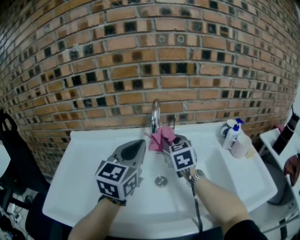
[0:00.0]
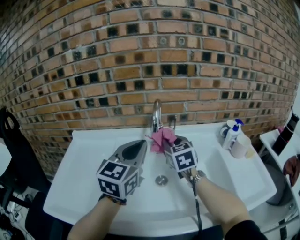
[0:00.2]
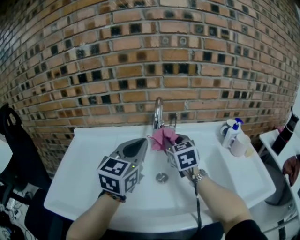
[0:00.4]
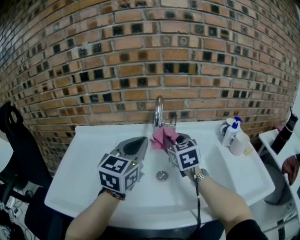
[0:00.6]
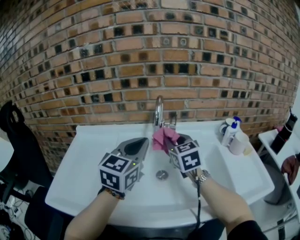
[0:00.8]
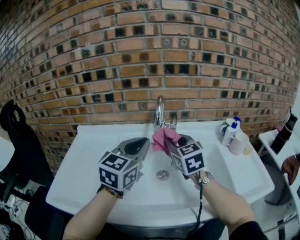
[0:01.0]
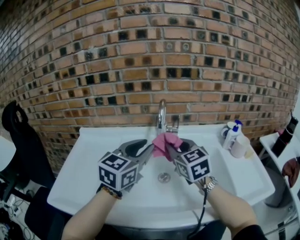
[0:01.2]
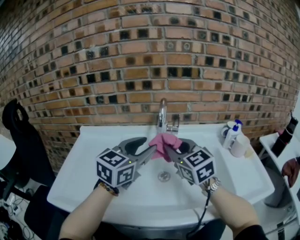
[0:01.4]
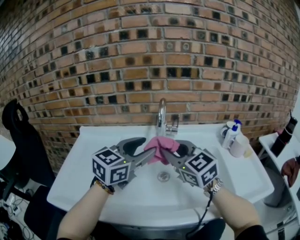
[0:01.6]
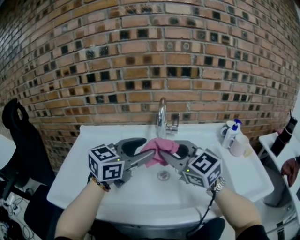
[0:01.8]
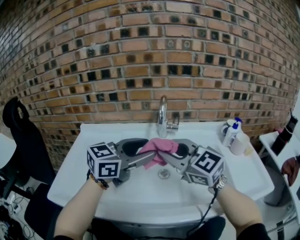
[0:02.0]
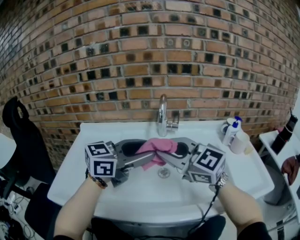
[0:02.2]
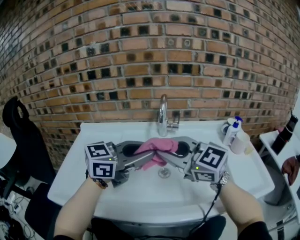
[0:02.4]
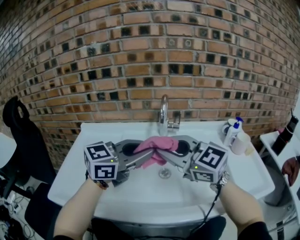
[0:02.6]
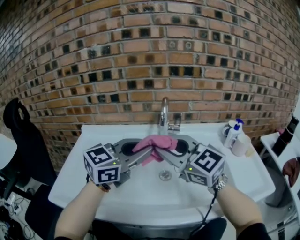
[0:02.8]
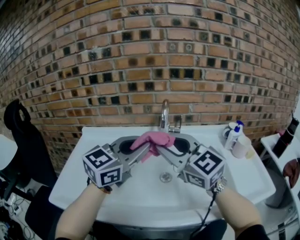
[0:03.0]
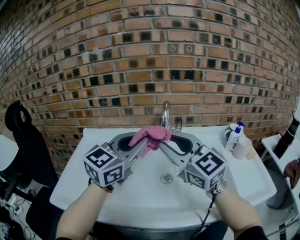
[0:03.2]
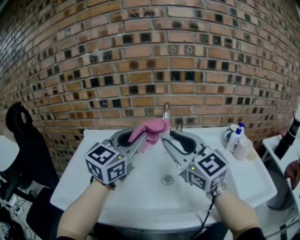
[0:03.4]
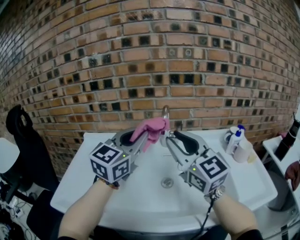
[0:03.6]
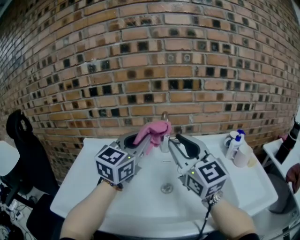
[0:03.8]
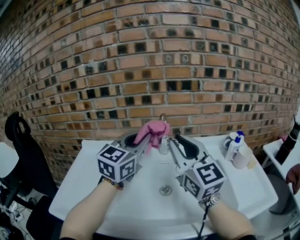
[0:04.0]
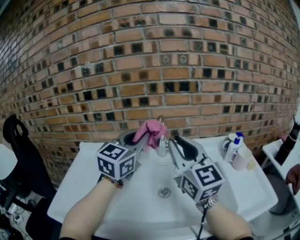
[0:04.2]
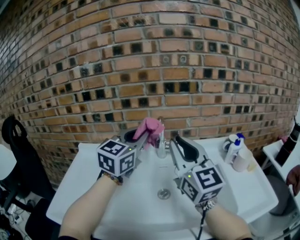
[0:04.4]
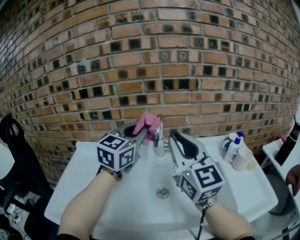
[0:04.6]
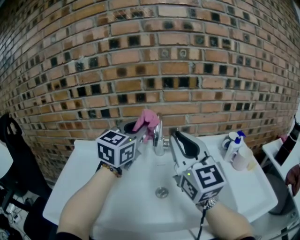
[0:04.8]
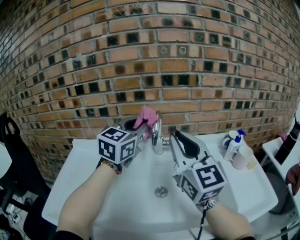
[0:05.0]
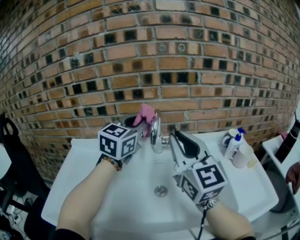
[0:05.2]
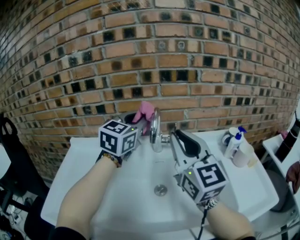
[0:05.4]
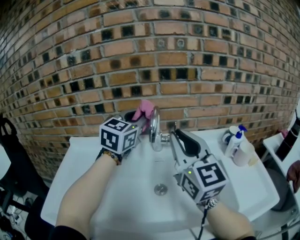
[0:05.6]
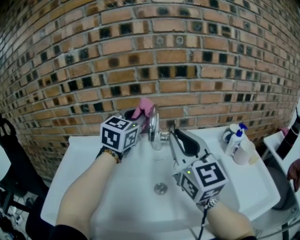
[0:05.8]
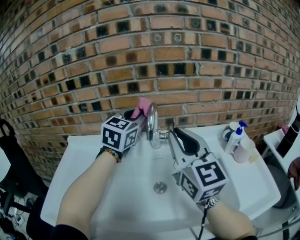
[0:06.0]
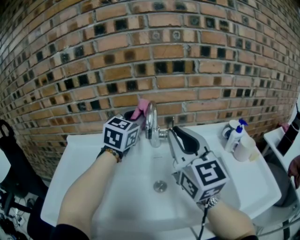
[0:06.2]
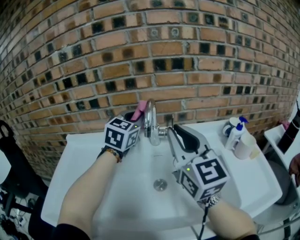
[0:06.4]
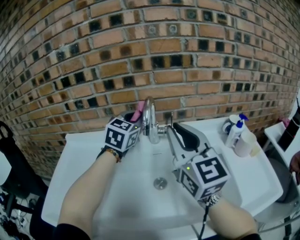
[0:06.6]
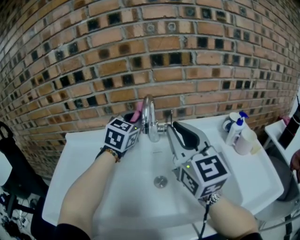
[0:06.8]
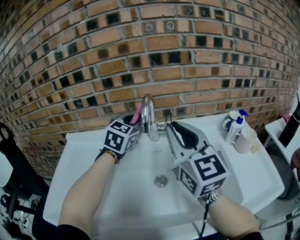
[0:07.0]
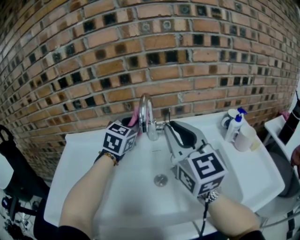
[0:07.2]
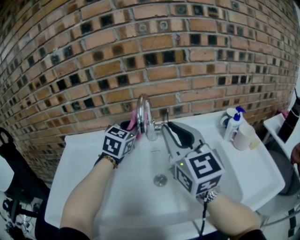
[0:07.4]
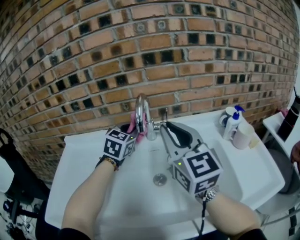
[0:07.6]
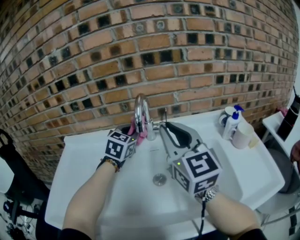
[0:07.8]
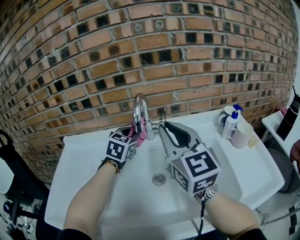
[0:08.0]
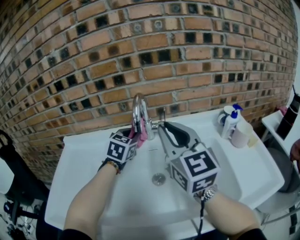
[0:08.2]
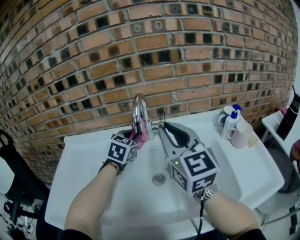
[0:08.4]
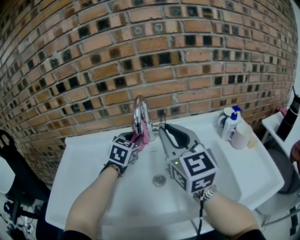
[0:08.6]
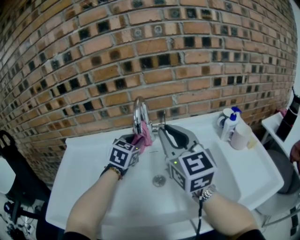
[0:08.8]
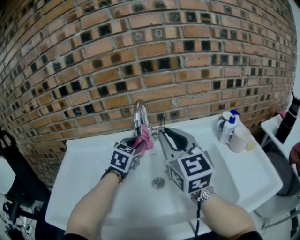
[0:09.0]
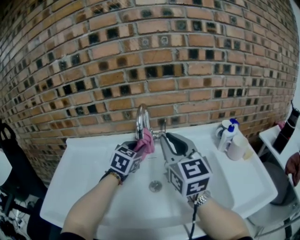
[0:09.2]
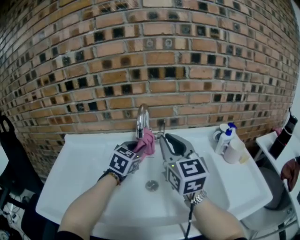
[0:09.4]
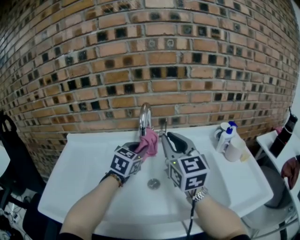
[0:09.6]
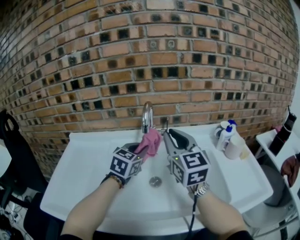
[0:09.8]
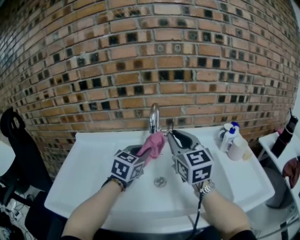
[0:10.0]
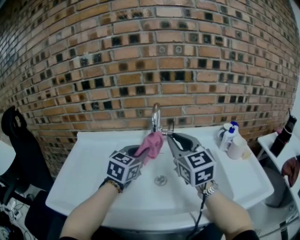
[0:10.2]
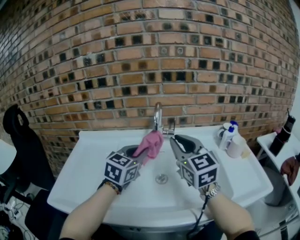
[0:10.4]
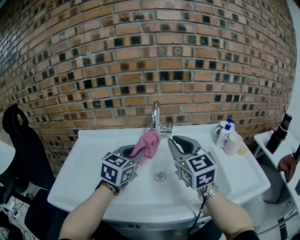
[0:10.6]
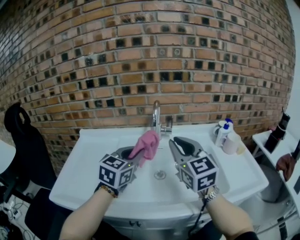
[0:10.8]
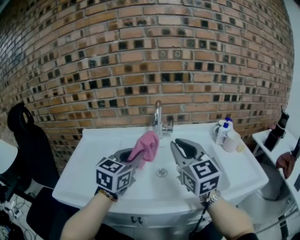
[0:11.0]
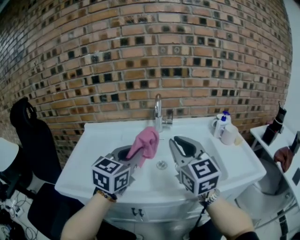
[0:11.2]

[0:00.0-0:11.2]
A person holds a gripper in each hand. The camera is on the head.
0:00.0 to 0:01.6: The right gripper moves backward and upward, roughly 15 cm, and changes its angle by some 30 degrees. The left gripper opens its fingers.
0:01.6 to 0:03.2: Both grippers move upward, approximately 5 cm. The left gripper closes up.
0:03.2 to 0:04.8: The left gripper travels forward by some 15 cm; the right gripper shifts some 10 cm to the right and forward, and turns by about 20 degrees.
0:04.8 to 0:06.4: The left gripper goes roughly 10 cm forward and downward.
0:06.4 to 0:08.0: The left gripper is displaced downward by about 10 cm.
0:08.0 to 0:09.6: The left gripper moves backward, approximately 5 cm.
0:09.6 to 0:11.2: The grippers both shift backward by about 20 cm.

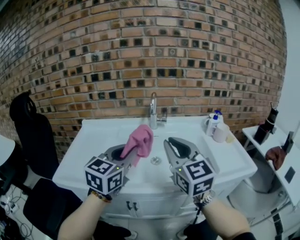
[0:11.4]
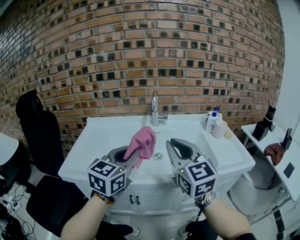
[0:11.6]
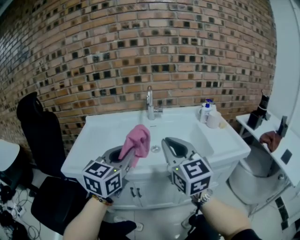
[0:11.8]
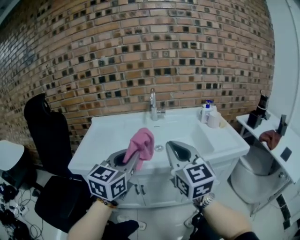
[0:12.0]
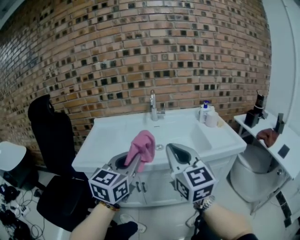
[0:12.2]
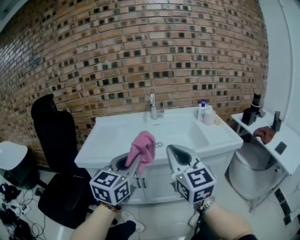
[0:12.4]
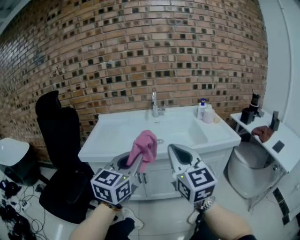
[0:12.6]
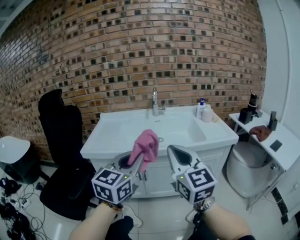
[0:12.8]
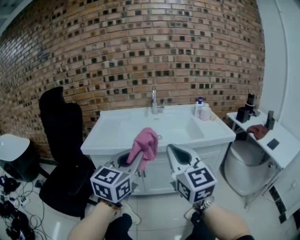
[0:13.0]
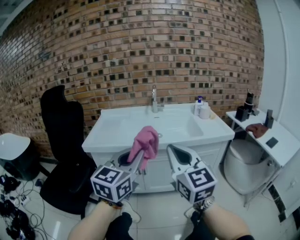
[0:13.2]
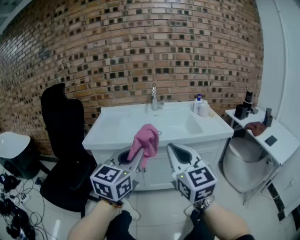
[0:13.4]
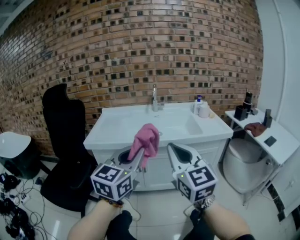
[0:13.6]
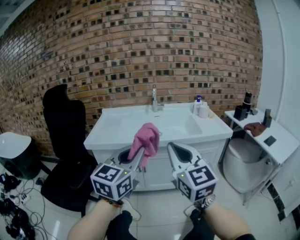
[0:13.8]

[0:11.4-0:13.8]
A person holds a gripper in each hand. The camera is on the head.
0:11.4 to 0:12.6: Both grippers travel together backward, some 25 cm.
0:12.6 to 0:13.8: The two grippers go roughly 10 cm backward.

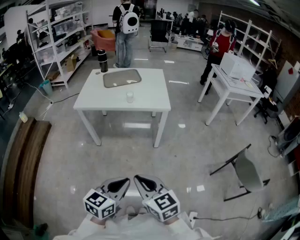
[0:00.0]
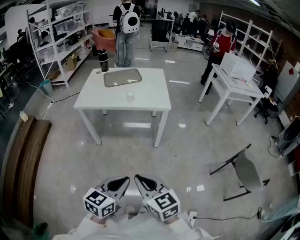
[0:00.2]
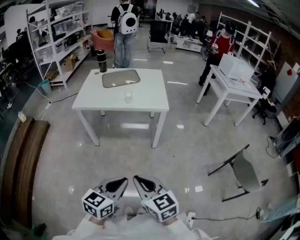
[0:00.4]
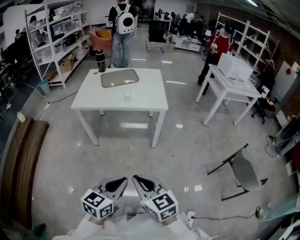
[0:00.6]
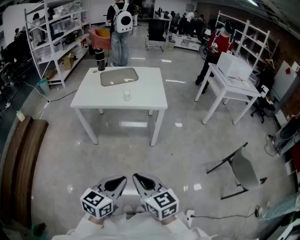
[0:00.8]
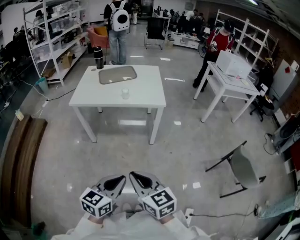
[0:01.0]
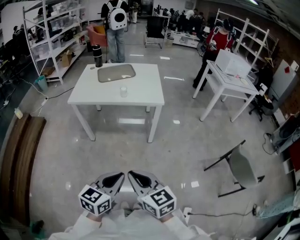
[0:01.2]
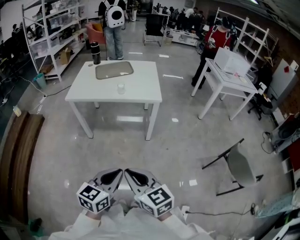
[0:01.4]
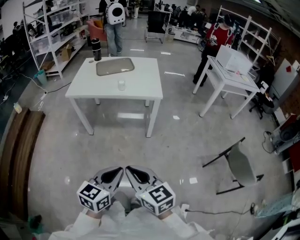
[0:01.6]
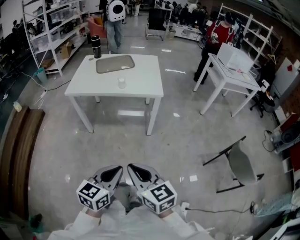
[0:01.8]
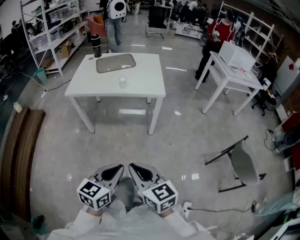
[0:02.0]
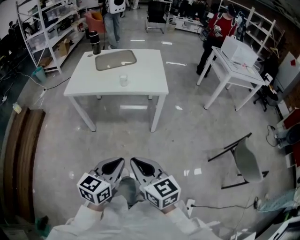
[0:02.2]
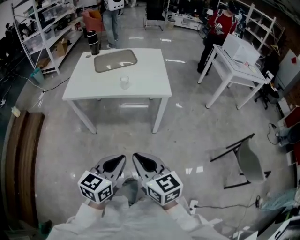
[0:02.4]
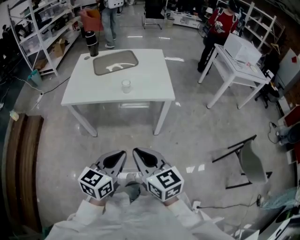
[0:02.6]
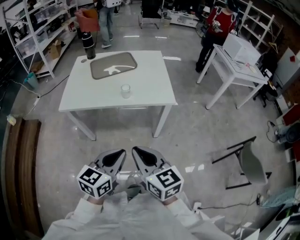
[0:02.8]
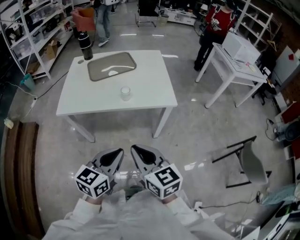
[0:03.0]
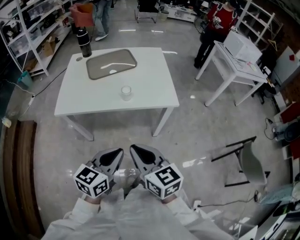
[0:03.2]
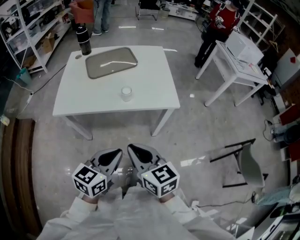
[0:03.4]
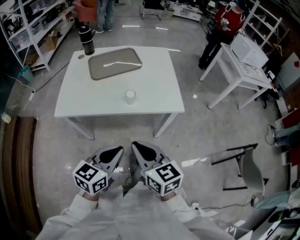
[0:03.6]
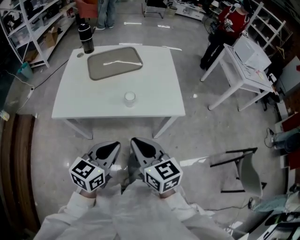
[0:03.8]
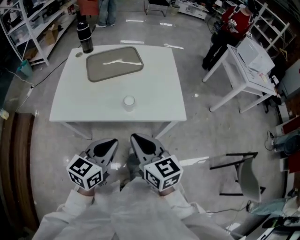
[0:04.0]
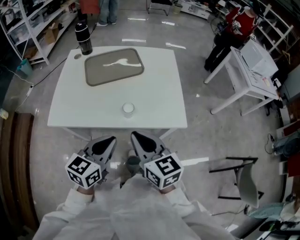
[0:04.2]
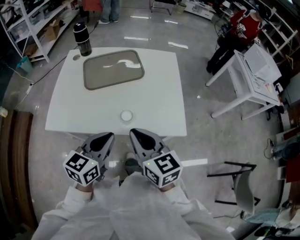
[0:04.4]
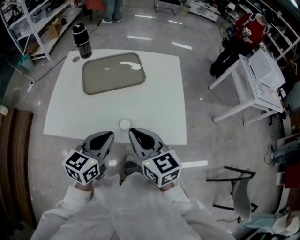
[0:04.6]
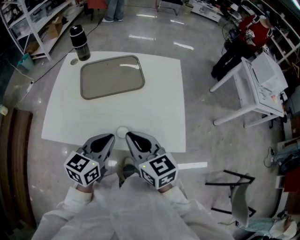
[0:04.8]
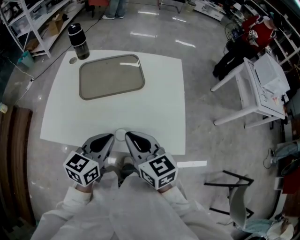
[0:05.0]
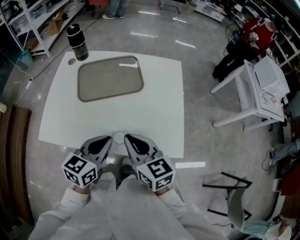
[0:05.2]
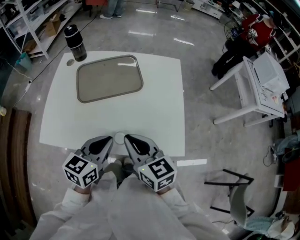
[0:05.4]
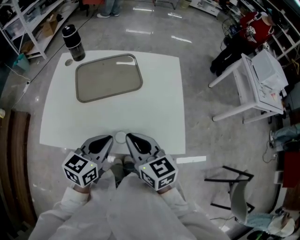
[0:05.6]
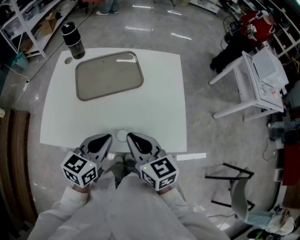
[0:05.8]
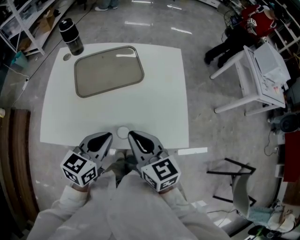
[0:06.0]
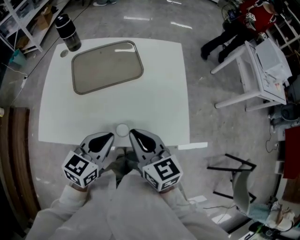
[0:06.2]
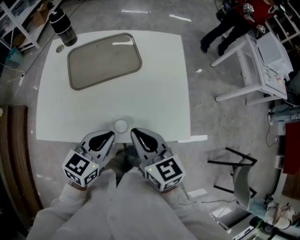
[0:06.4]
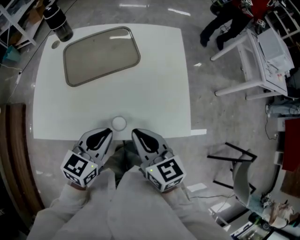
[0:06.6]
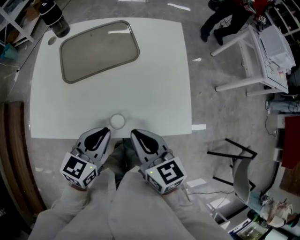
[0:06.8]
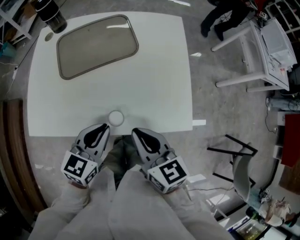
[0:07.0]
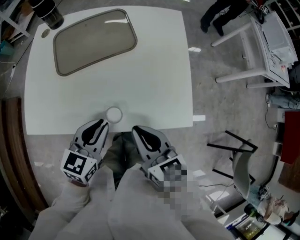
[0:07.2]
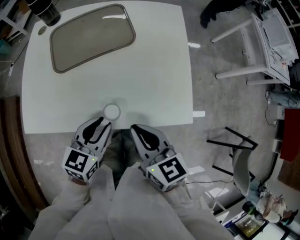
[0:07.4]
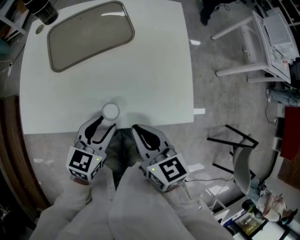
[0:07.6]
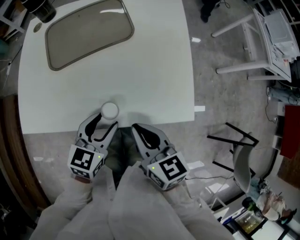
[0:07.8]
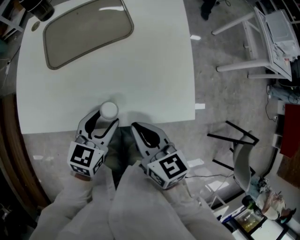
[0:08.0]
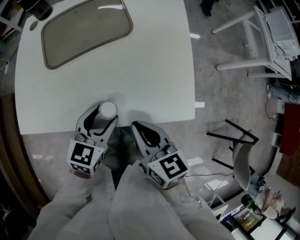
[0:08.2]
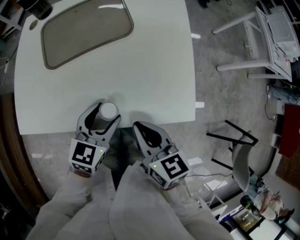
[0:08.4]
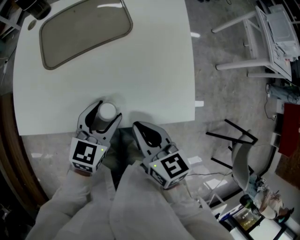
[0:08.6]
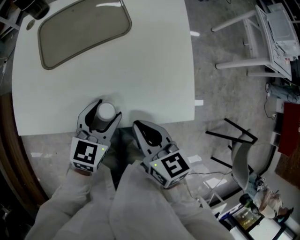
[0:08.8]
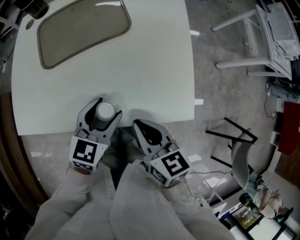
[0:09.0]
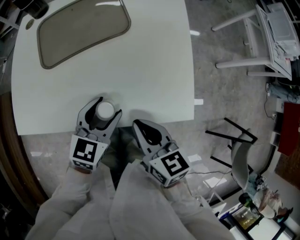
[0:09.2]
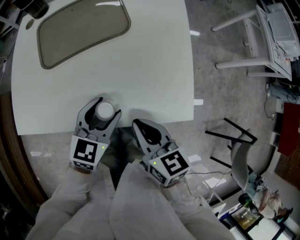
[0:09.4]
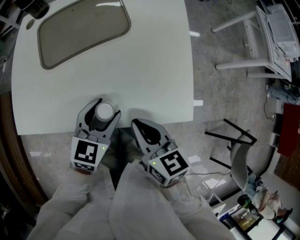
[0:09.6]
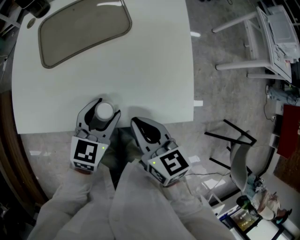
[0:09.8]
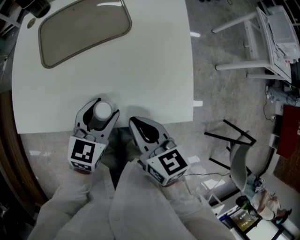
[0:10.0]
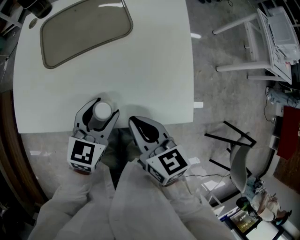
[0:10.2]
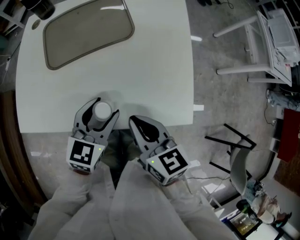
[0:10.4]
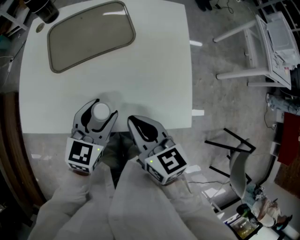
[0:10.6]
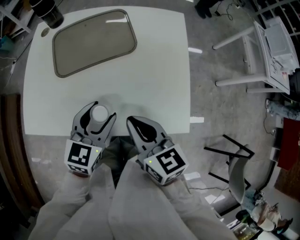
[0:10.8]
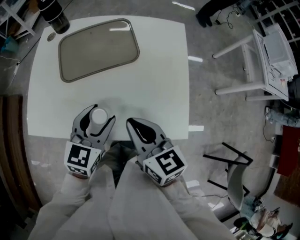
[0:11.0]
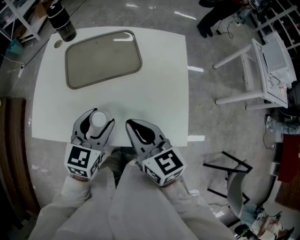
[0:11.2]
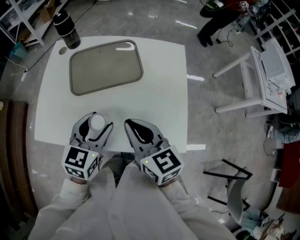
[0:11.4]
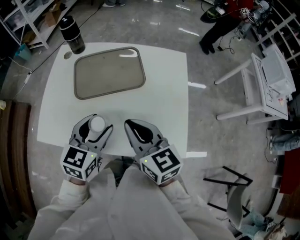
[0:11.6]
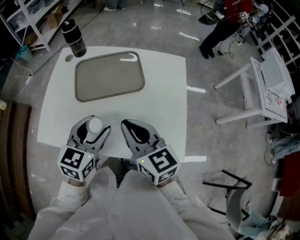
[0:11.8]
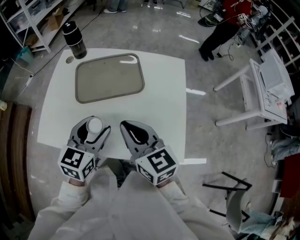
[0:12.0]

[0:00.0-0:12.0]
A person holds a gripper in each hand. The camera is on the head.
0:00.0 to 0:01.6: The grippers stay close to where they were, moving slightly.
0:01.6 to 0:03.0: Both grippers travel together forward, roughly 30 cm.
0:03.0 to 0:04.4: The grippers both shift forward by roughly 30 cm.
0:04.4 to 0:06.0: Both grippers travel together forward, about 10 cm.
0:06.0 to 0:07.6: The two grippers go approximately 10 cm downward. The left gripper opens.
0:07.6 to 0:09.0: The left gripper shifts by roughly 5 cm, and opens.
0:09.0 to 0:10.4: The grippers stay close to where they were, moving slightly.
0:10.4 to 0:12.0: The right gripper heads upward and forward, covering approximately 15 cm, and changes its angle by about 20 degrees. Meanwhile the left gripper moves upward and to the left, roughly 15 cm.
